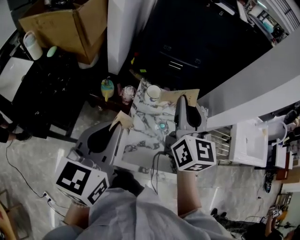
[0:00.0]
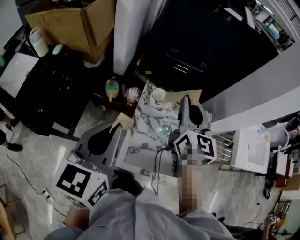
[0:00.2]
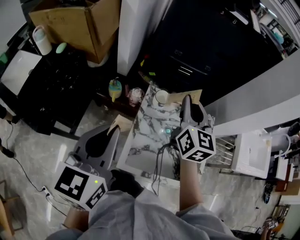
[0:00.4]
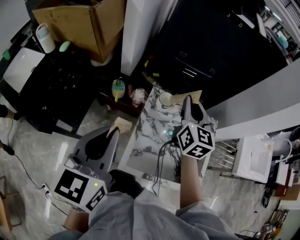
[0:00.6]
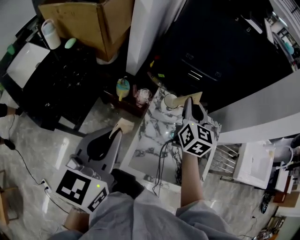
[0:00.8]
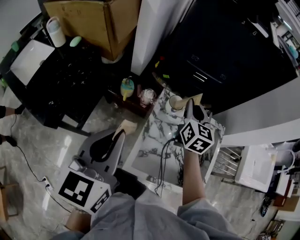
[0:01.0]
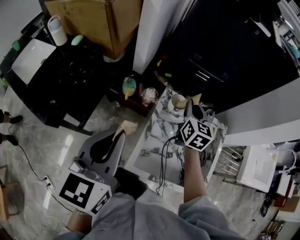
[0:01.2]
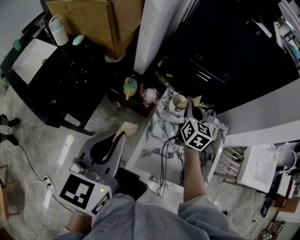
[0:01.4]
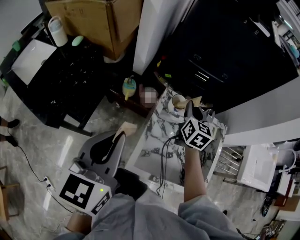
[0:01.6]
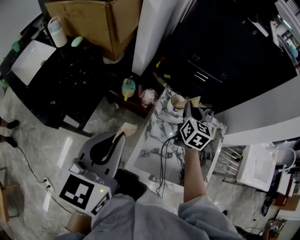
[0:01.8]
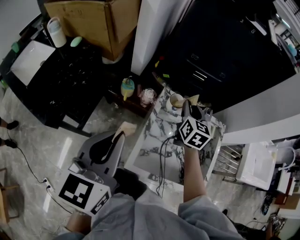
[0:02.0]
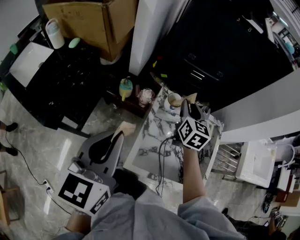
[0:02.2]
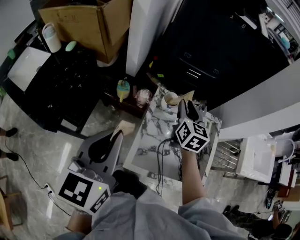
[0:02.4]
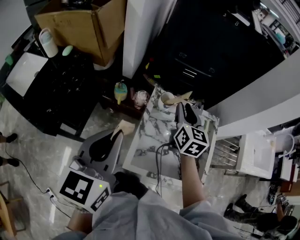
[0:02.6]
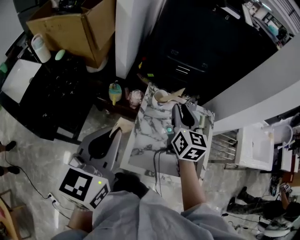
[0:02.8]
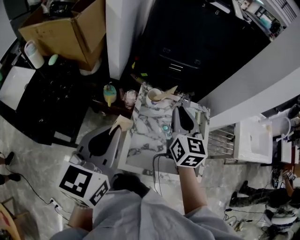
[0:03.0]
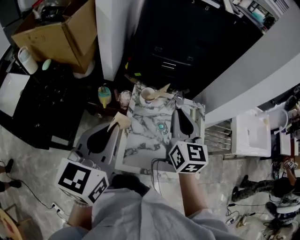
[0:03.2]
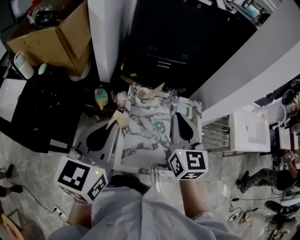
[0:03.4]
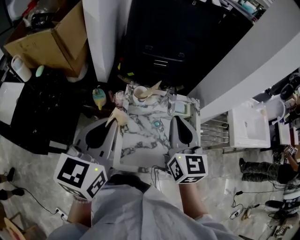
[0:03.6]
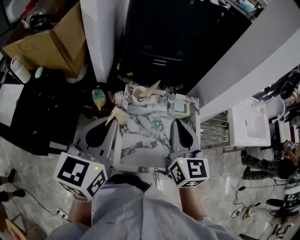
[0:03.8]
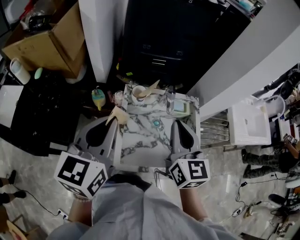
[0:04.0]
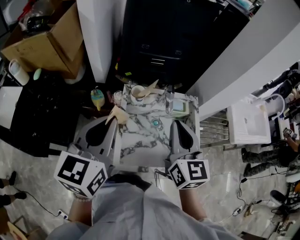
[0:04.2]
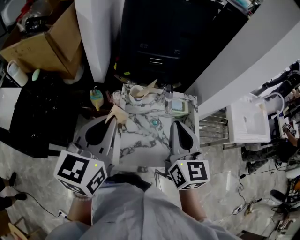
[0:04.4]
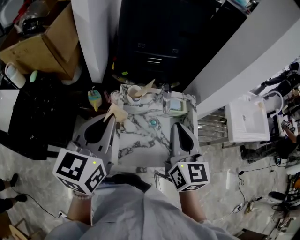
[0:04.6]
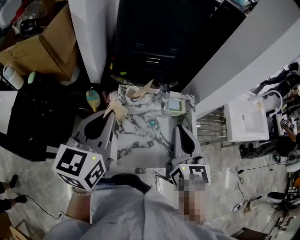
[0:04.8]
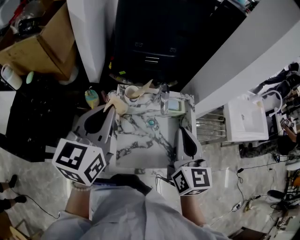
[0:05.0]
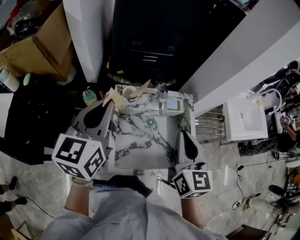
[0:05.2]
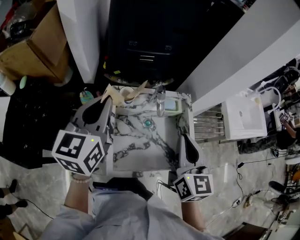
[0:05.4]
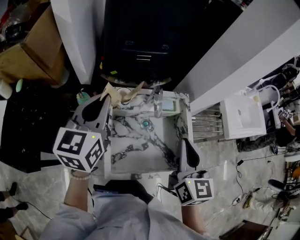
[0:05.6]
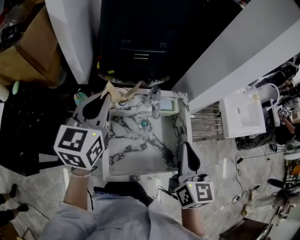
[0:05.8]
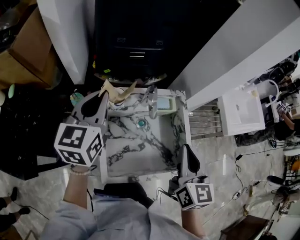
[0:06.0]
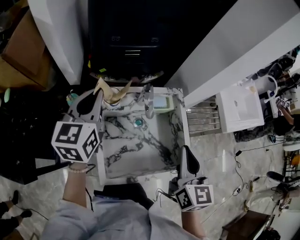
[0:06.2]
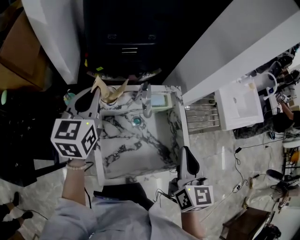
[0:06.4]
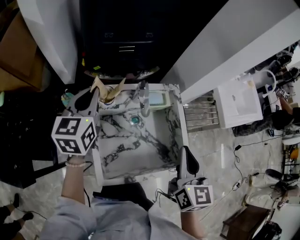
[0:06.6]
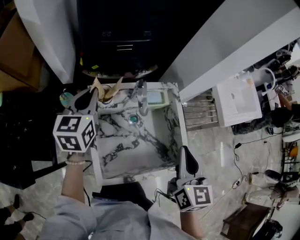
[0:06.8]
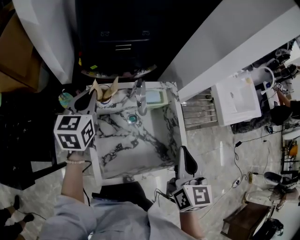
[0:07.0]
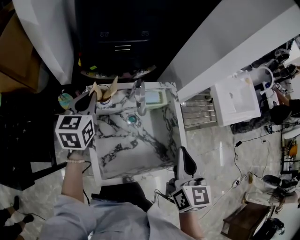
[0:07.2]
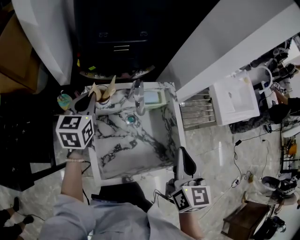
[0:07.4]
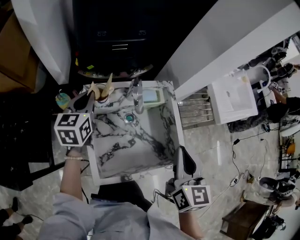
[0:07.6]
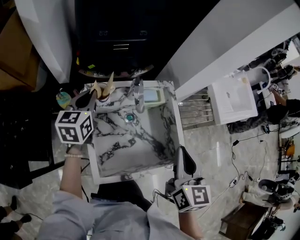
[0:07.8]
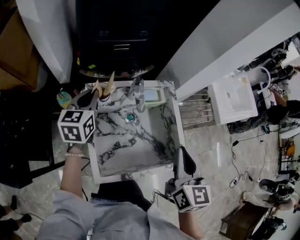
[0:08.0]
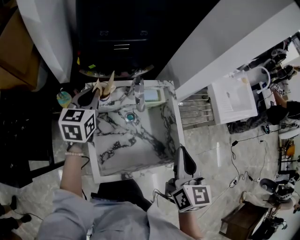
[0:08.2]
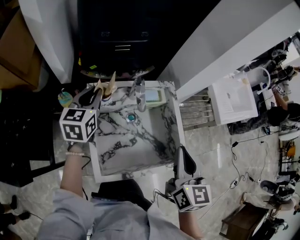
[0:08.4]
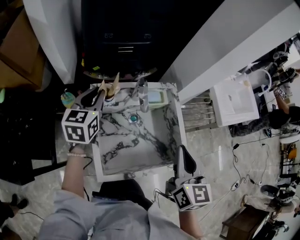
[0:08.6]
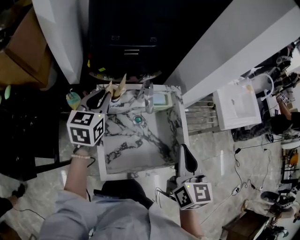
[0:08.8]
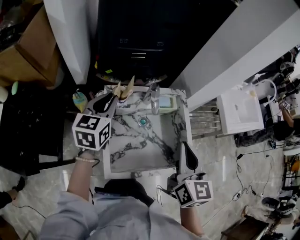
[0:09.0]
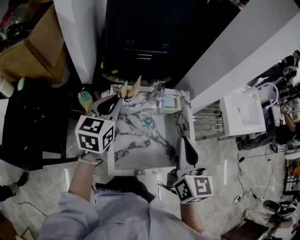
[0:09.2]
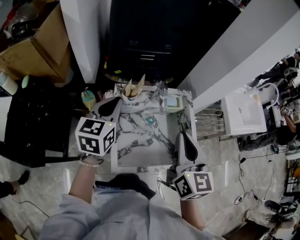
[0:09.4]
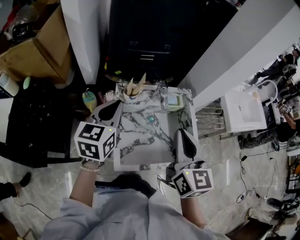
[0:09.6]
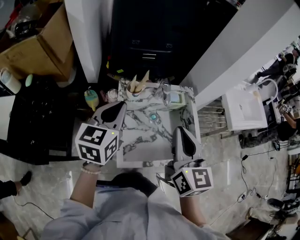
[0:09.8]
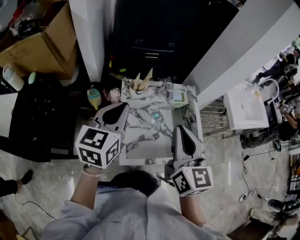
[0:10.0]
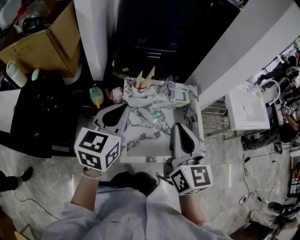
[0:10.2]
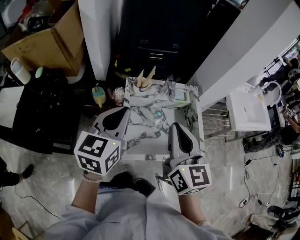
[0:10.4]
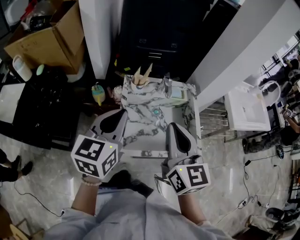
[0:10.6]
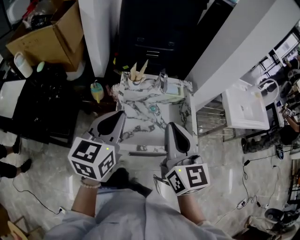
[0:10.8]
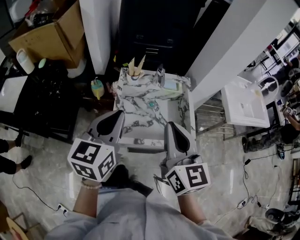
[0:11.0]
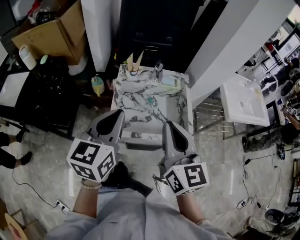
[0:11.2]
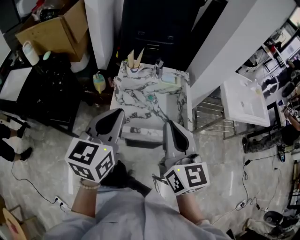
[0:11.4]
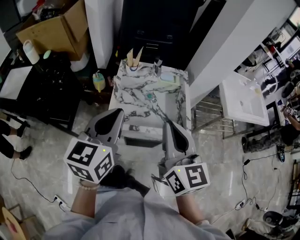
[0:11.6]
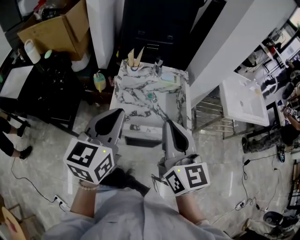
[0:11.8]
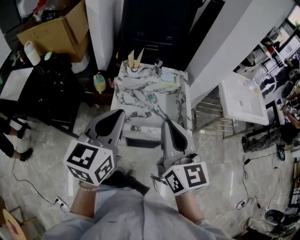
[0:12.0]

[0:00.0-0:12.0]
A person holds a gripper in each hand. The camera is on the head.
0:00.0 to 0:01.6: The left gripper moves to the left, about 5 cm. Meanwhile the right gripper moves downward and forward, approximately 20 cm.
0:01.6 to 0:03.0: The left gripper changes place by roughly 5 cm. The right gripper is displaced backward and upward by some 15 cm.
0:03.0 to 0:04.4: The right gripper travels backward and to the right by some 10 cm, while the left gripper changes place by about 5 cm.
0:04.4 to 0:06.0: The left gripper moves forward, roughly 15 cm; the right gripper moves to the right, some 10 cm.
0:06.0 to 0:07.6: The left gripper heads downward, covering approximately 10 cm.
0:07.6 to 0:09.0: The right gripper changes place by about 5 cm. Meanwhile the left gripper moves upward, about 5 cm.
0:09.0 to 0:10.4: The right gripper is displaced to the left and backward by about 10 cm, while the left gripper shifts approximately 20 cm backward and upward.
0:10.4 to 0:12.0: Both grippers move backward and to the right, roughly 15 cm.

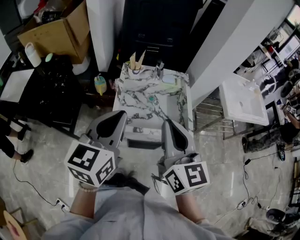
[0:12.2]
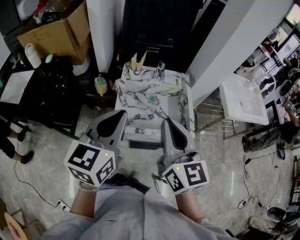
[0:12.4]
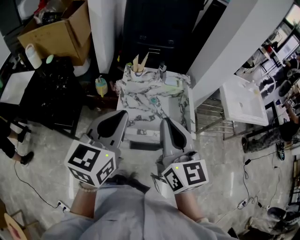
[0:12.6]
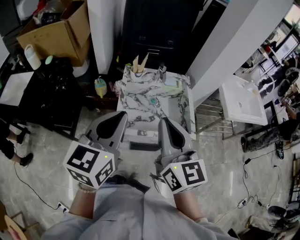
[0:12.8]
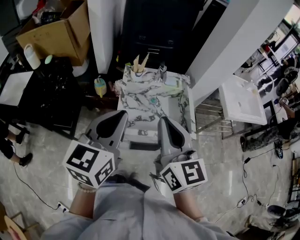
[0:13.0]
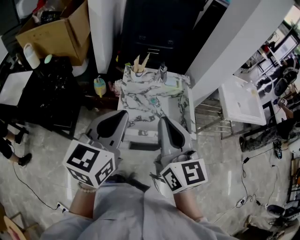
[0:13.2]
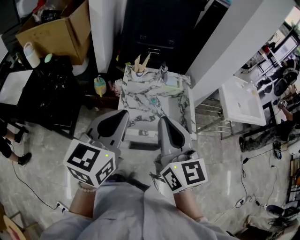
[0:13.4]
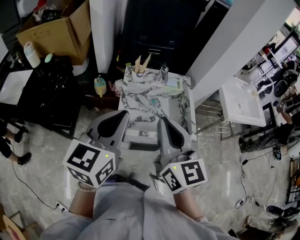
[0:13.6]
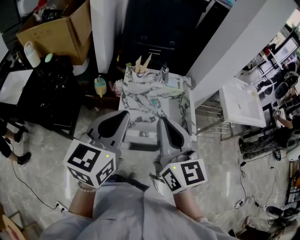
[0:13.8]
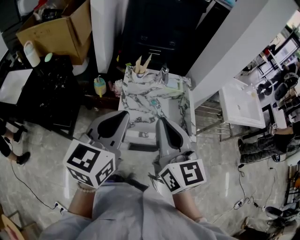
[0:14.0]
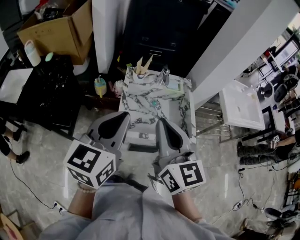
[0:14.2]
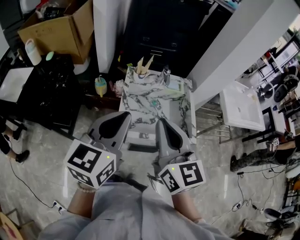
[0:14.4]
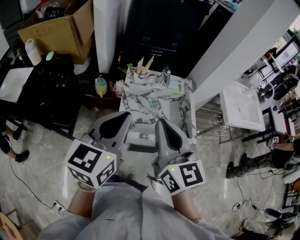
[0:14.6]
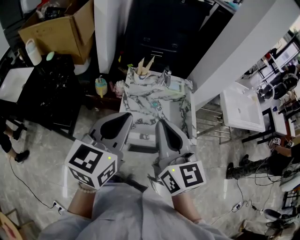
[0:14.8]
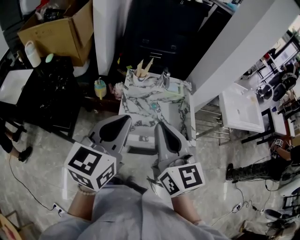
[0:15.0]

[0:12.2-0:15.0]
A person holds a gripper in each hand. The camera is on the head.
0:12.2 to 0:13.6: The right gripper shifts approximately 5 cm to the left.
0:13.6 to 0:15.0: The grippers stay close to where they were, moving slightly.

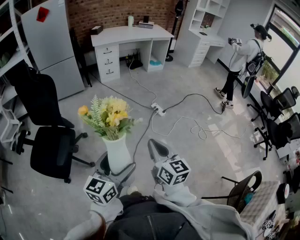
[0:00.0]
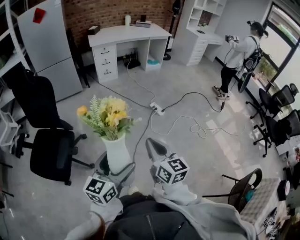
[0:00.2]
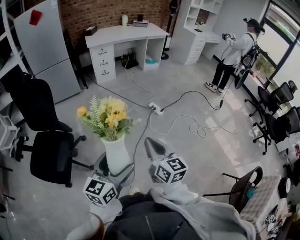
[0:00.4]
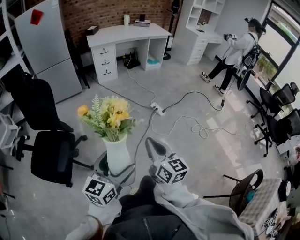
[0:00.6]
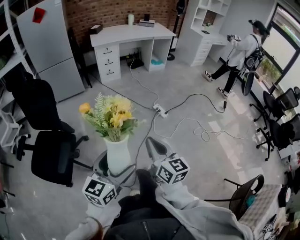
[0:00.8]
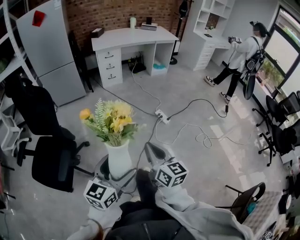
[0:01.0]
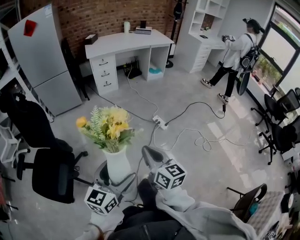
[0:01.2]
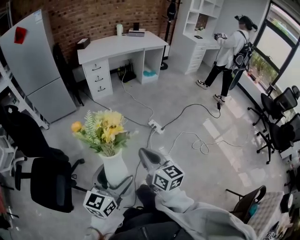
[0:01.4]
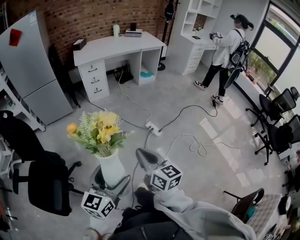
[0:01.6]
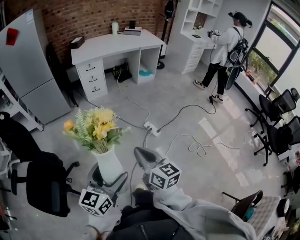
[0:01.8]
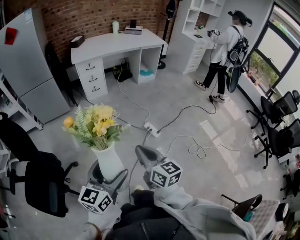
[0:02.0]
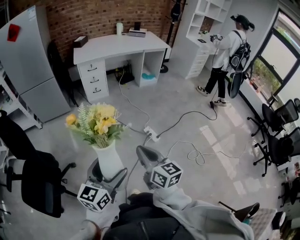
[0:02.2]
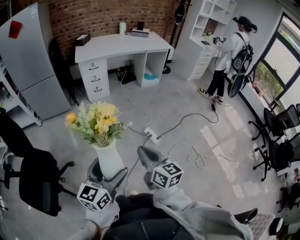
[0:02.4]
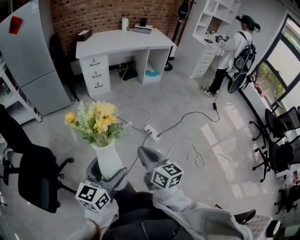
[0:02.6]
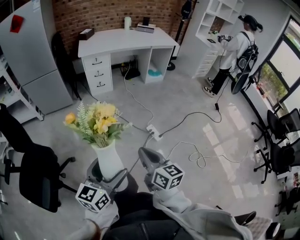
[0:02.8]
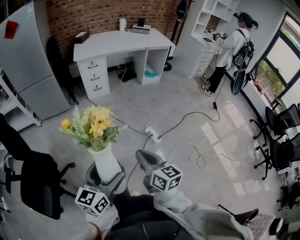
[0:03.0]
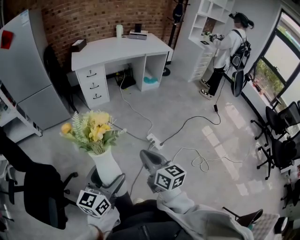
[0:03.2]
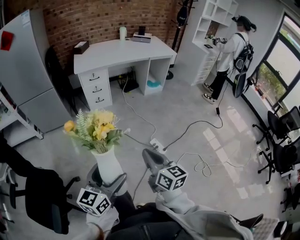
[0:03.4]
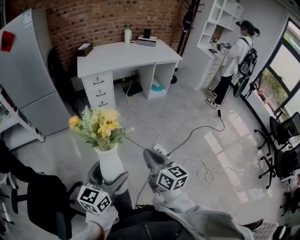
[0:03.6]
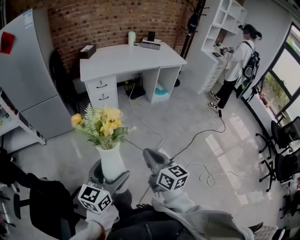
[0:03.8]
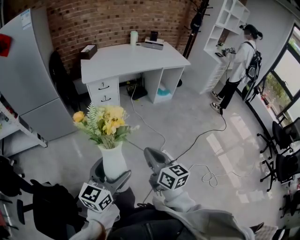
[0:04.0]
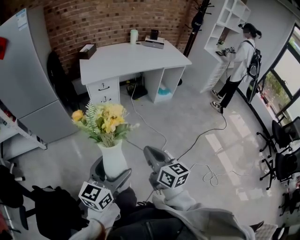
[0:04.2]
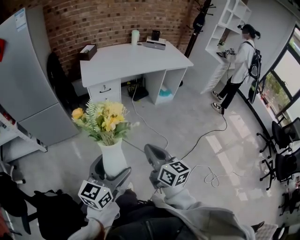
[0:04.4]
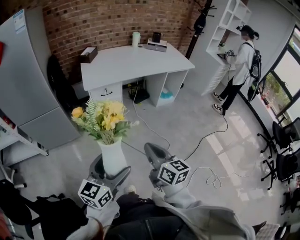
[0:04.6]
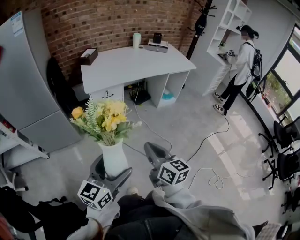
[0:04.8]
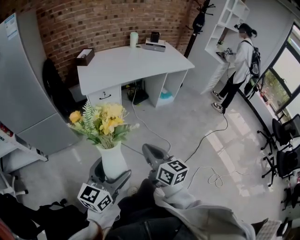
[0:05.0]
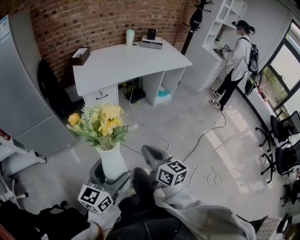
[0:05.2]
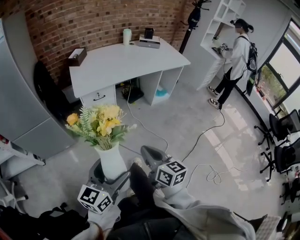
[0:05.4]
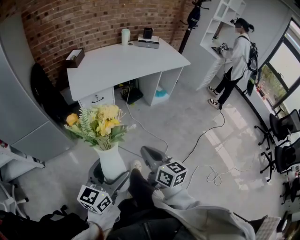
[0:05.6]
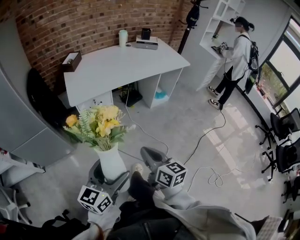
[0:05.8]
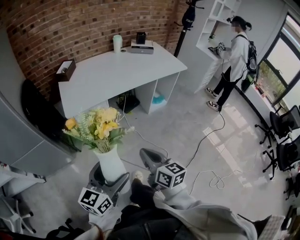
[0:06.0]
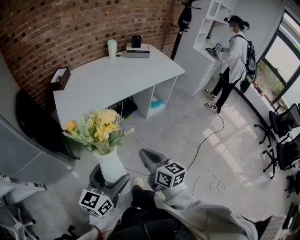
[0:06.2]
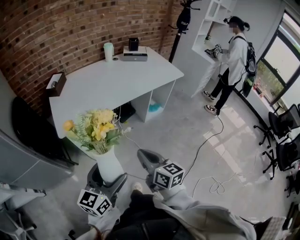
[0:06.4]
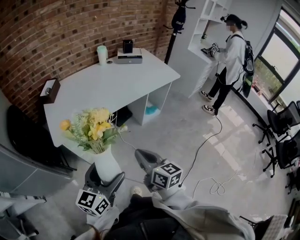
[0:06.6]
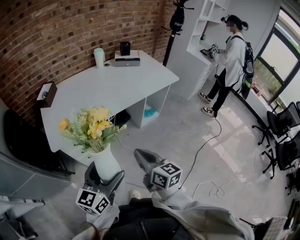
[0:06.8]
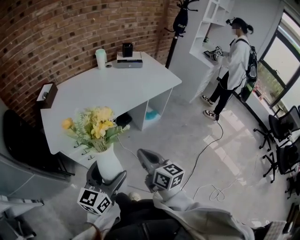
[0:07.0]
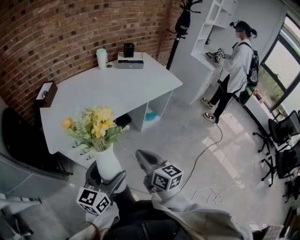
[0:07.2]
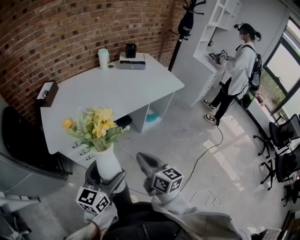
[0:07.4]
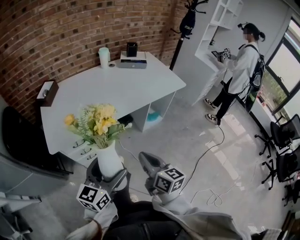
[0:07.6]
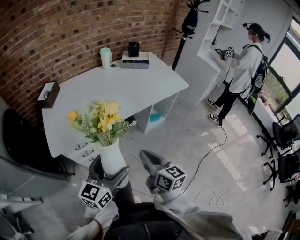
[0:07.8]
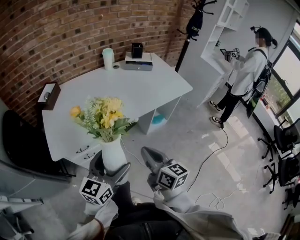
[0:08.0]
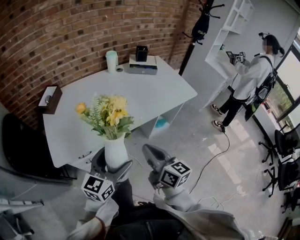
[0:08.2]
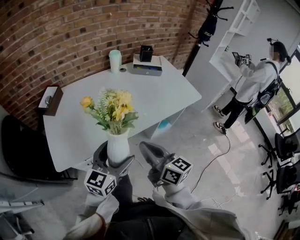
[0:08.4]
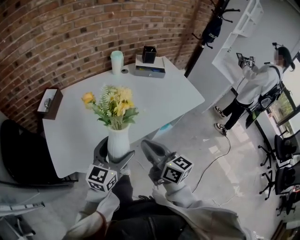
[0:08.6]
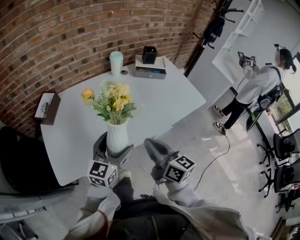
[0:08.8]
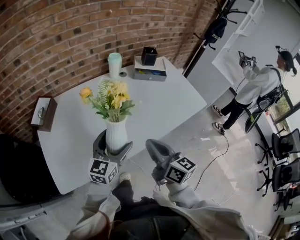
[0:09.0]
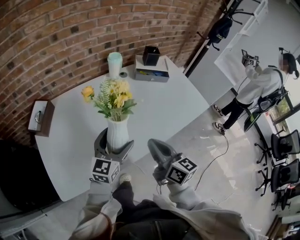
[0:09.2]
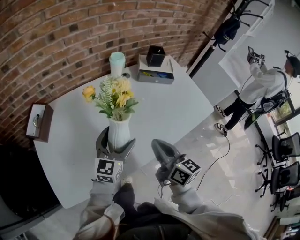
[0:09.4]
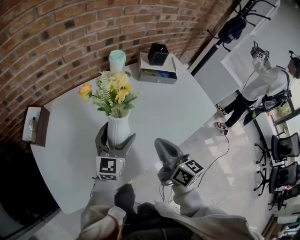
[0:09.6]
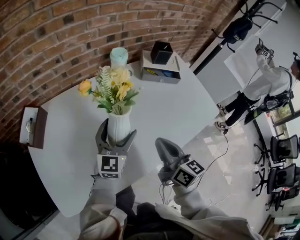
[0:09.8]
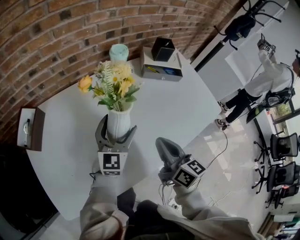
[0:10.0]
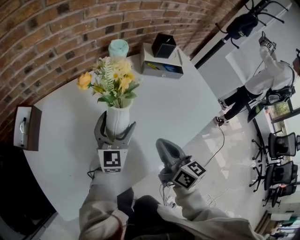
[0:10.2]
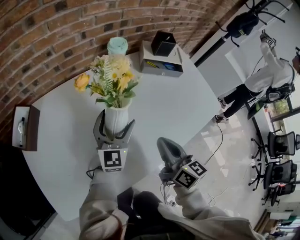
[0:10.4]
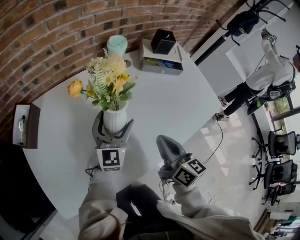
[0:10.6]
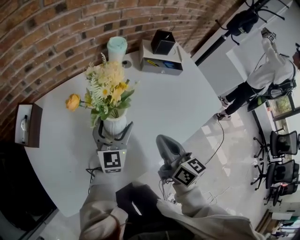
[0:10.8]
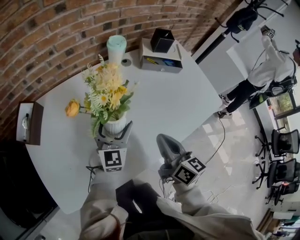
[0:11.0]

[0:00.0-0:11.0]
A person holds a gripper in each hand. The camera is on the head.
0:00.0 to 0:01.6: The two grippers go roughly 30 cm forward.
0:01.6 to 0:03.2: The grippers both shift forward by approximately 20 cm.
0:03.2 to 0:04.8: The two grippers travel together, forward and to the left, approximately 40 cm.
0:04.8 to 0:06.2: The grippers both shift forward by some 25 cm.
0:06.2 to 0:07.8: The two grippers go approximately 25 cm forward.
0:07.8 to 0:09.4: The two grippers go some 40 cm forward.
0:09.4 to 0:11.0: The two grippers go roughly 10 cm forward and downward.
